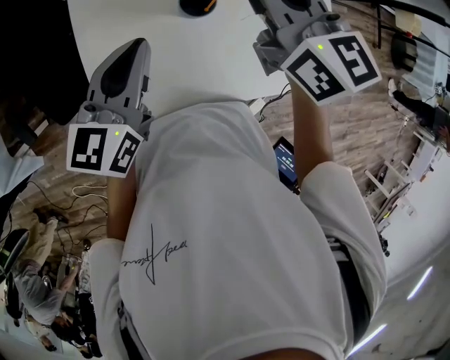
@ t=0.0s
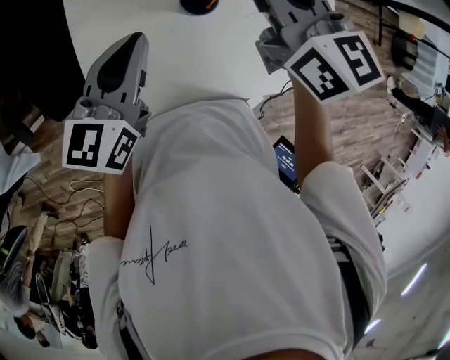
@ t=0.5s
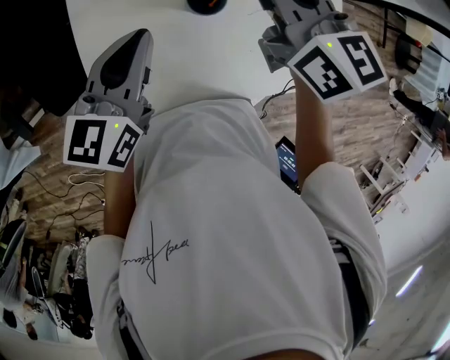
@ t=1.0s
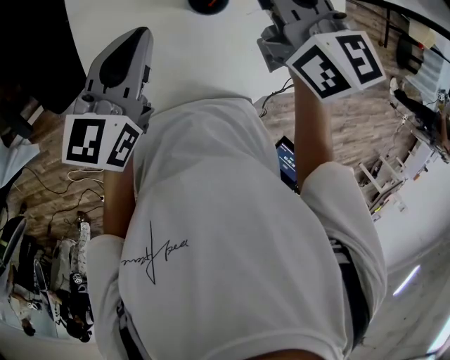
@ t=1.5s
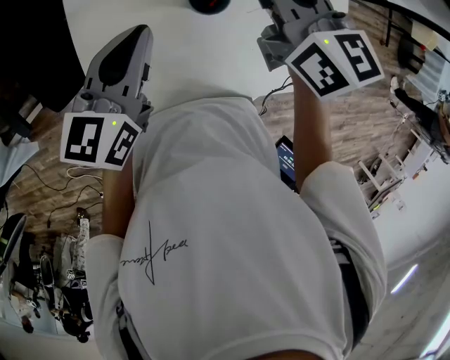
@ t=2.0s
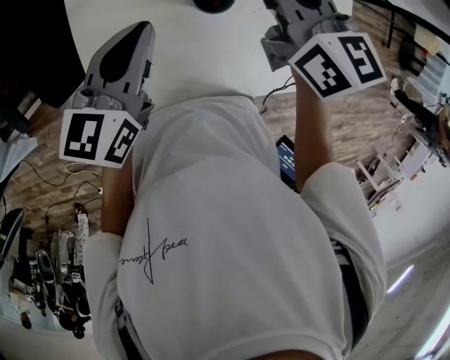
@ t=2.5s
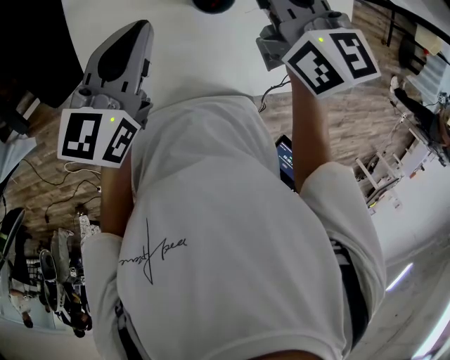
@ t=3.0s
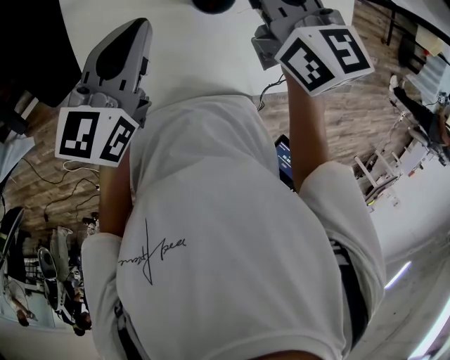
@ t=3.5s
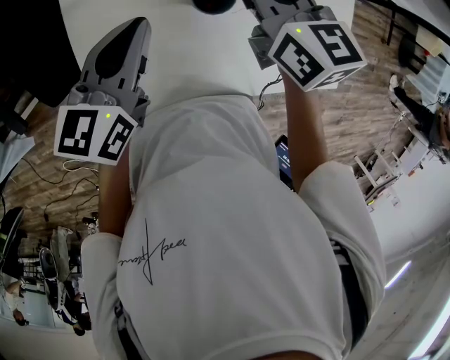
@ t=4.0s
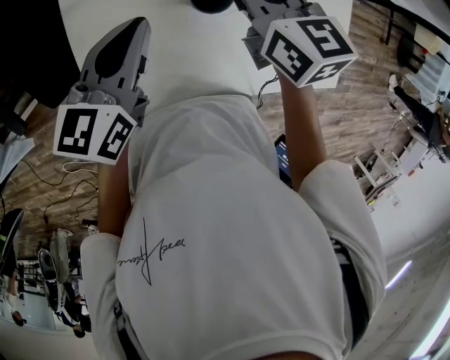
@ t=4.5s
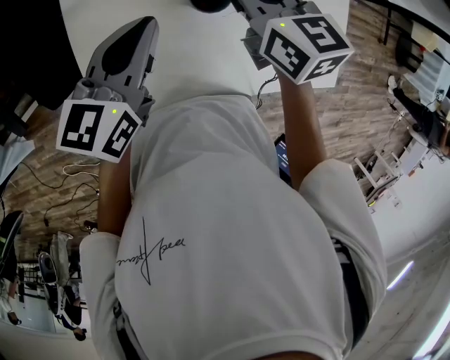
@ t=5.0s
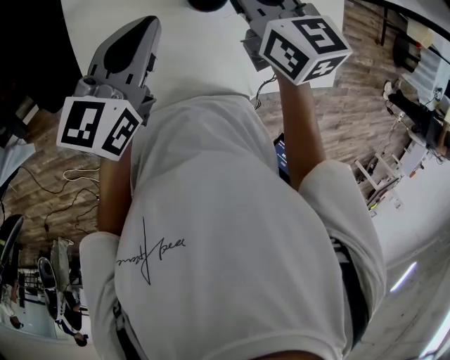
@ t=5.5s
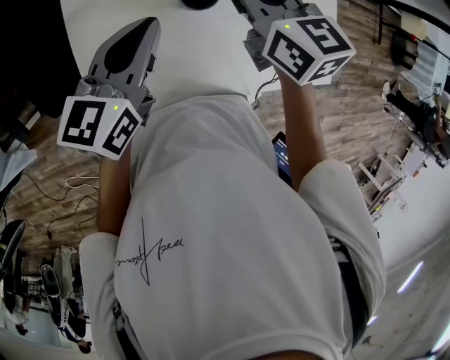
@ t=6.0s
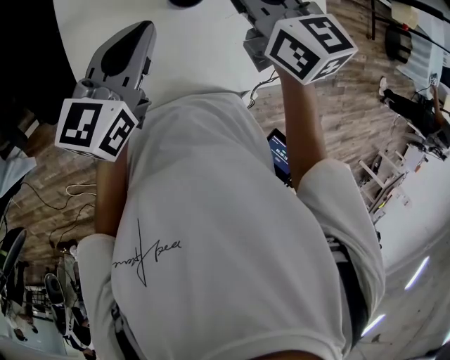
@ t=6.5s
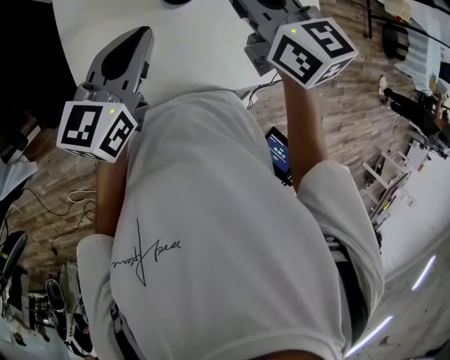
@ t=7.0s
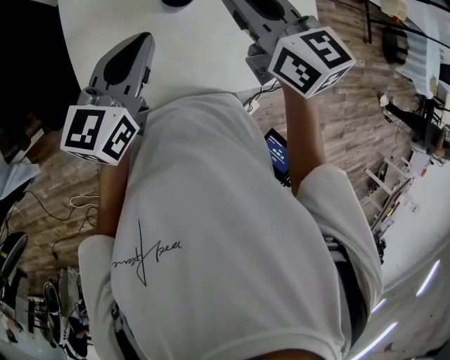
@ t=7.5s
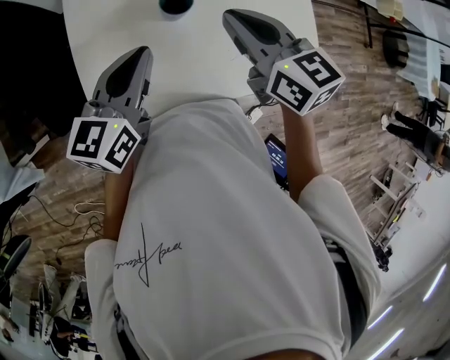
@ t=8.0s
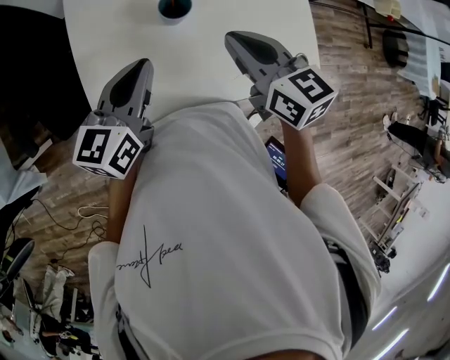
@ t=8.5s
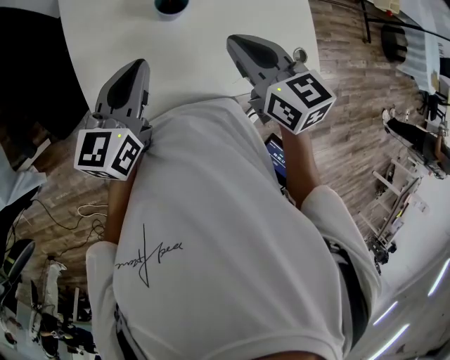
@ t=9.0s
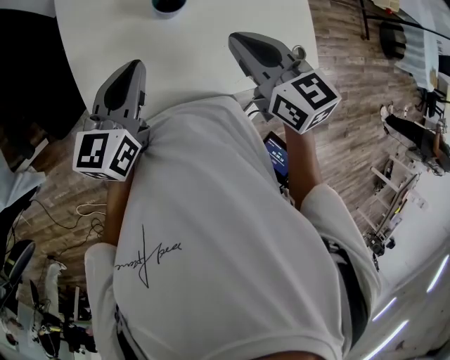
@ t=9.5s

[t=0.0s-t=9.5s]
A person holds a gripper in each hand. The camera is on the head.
t=0.0s to t=2.0s: The right gripper heads downward, covering approximately 5 cm.
t=2.0s to t=4.0s: The right gripper moves downward, some 5 cm.
t=4.0s to t=5.5s: The grippers stay close to where they were, moving slightly.
t=5.5s to t=7.5s: The left gripper changes place by roughly 5 cm. The right gripper goes about 10 cm upward and backward.
t=7.5s to t=9.5s: The right gripper is displaced backward by about 10 cm.

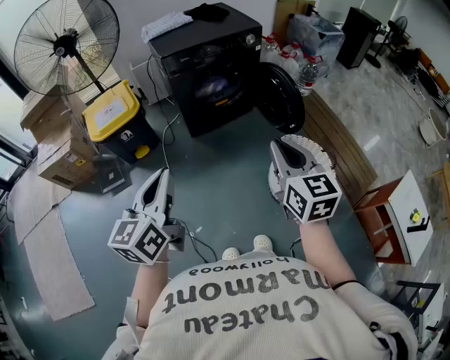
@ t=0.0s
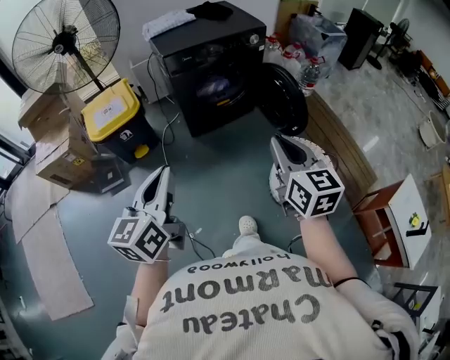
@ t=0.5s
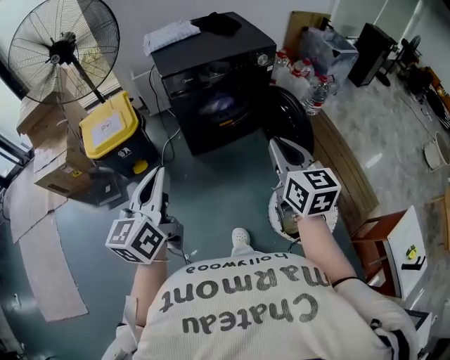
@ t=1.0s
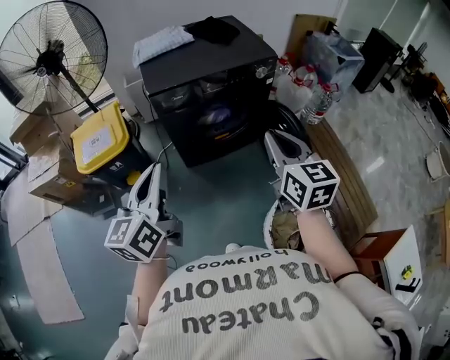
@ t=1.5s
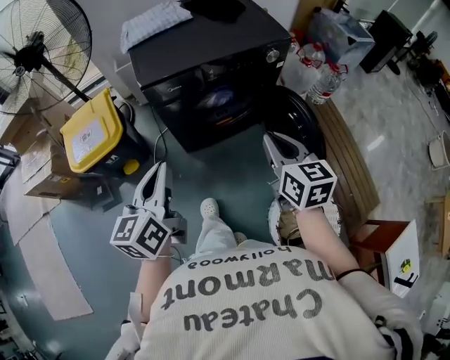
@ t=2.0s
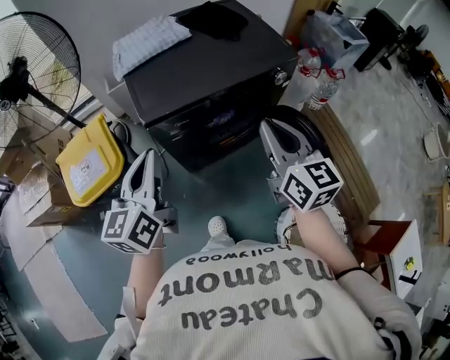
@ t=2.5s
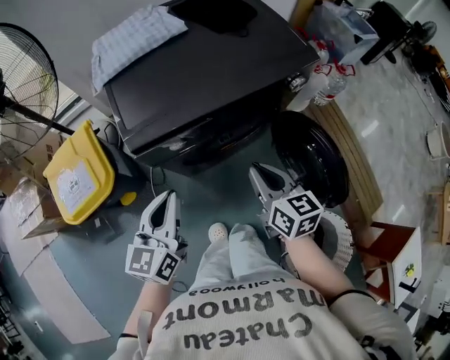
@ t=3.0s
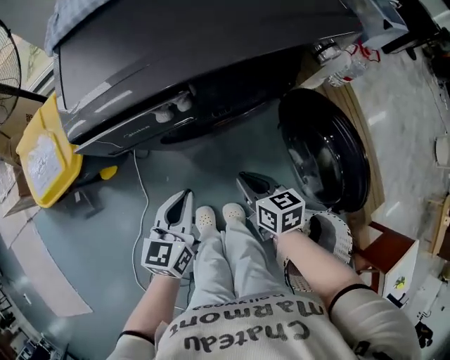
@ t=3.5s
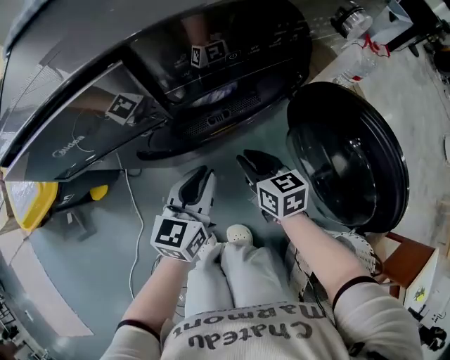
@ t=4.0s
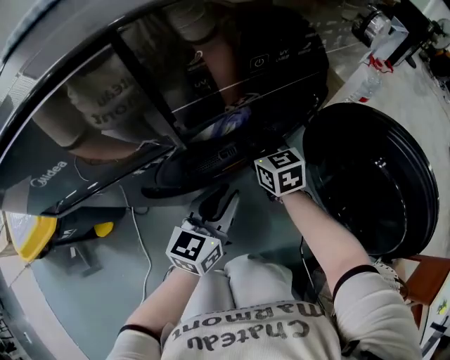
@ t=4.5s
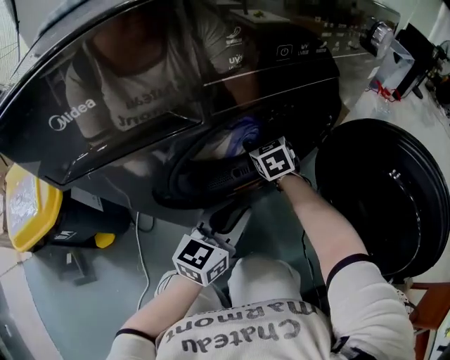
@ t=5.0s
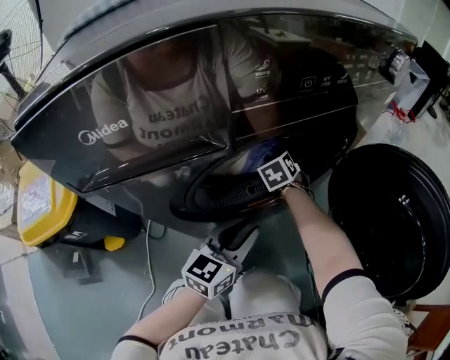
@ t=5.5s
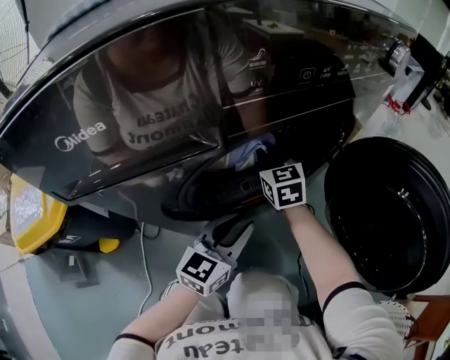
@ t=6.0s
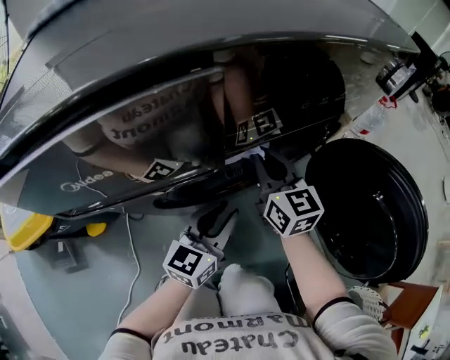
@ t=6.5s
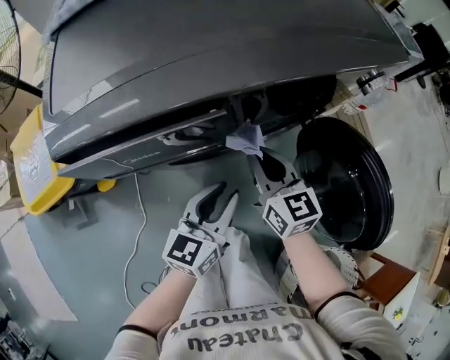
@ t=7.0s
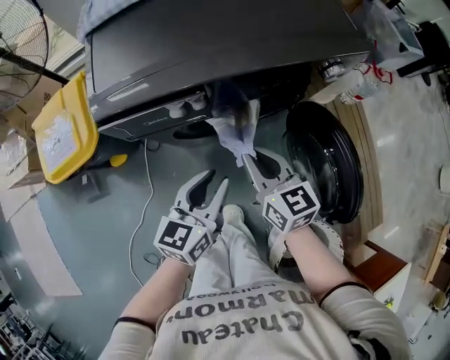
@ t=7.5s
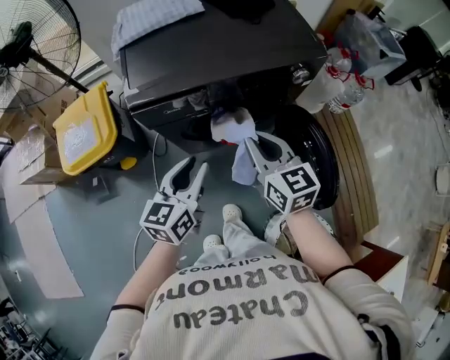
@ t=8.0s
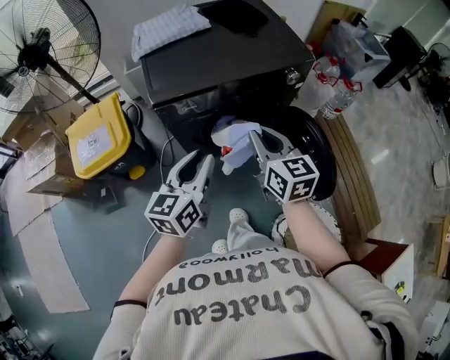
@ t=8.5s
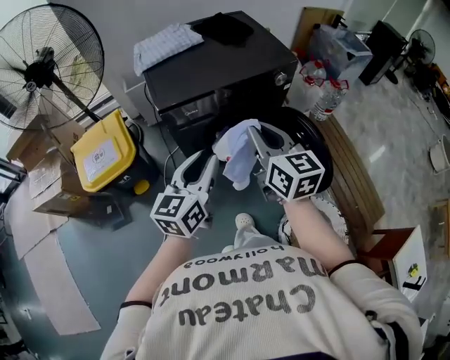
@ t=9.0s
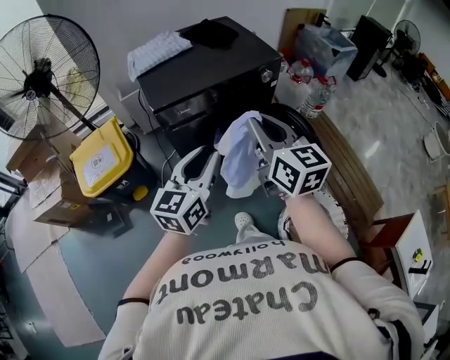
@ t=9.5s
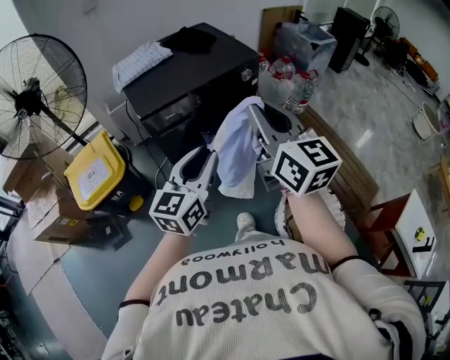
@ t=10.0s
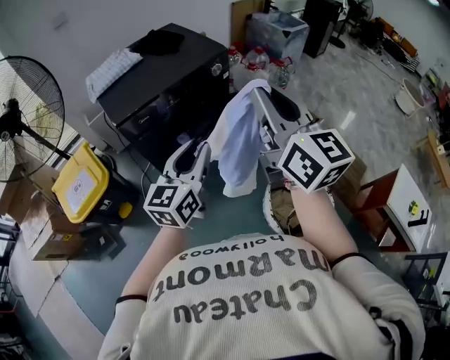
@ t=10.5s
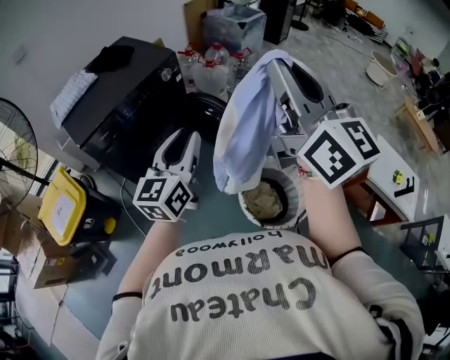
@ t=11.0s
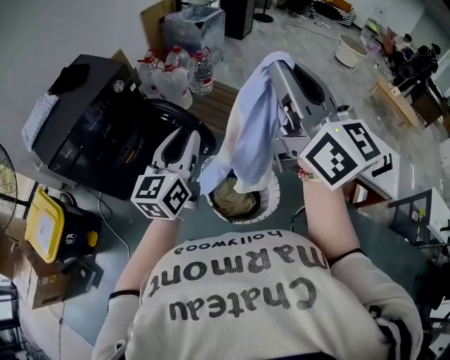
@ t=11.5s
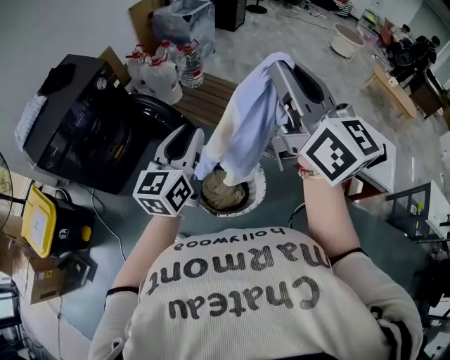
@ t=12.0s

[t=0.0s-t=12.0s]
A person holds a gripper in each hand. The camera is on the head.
t=0.0s to t=2.0s: Both grippers travel together forward, approximately 40 cm.
t=2.0s to t=4.0s: The two grippers go approximately 50 cm downward and forward. The left gripper swivels some 20 degrees.
t=4.0s to t=6.0s: The right gripper shifts about 20 cm forward, changes its angle by some 30 degrees, and opens, then closes once more. Meanwhile the left gripper heads downward, covering some 10 cm.
t=6.0s to t=8.0s: The left gripper is displaced upward by some 35 cm, and changes its angle by about 30 degrees. Meanwhile the right gripper shifts approximately 50 cm upward and backward, and turns by roughly 20 degrees.
t=8.0s to t=10.0s: The right gripper moves upward and backward, some 35 cm, and turns by roughly 30 degrees. The left gripper heads backward and upward, covering about 25 cm, and changes its angle by approximately 30 degrees.
t=10.0s to t=12.0s: The pair of grippers is taken to the right, roughly 50 cm. The right gripper turns by approximately 30 degrees; the left gripper changes its angle by approximately 20 degrees.

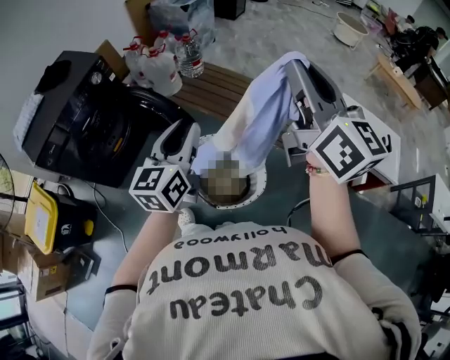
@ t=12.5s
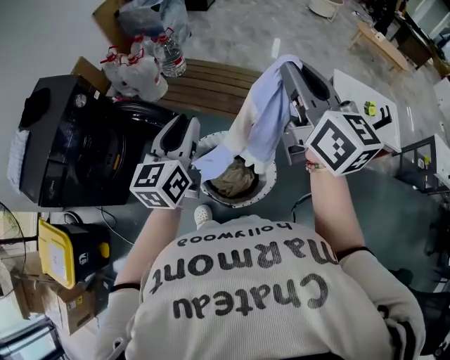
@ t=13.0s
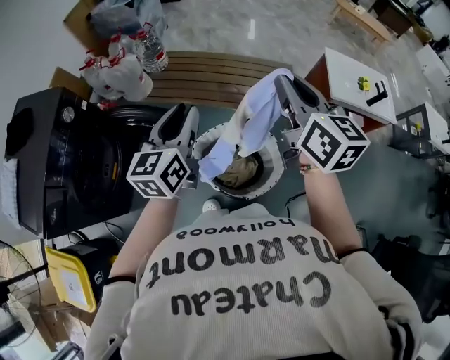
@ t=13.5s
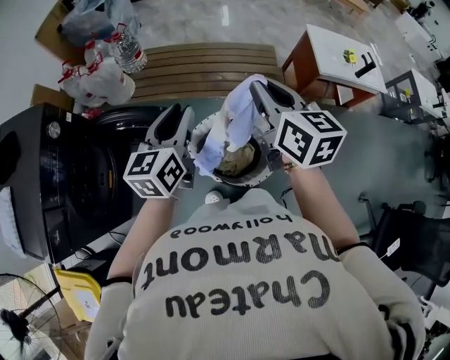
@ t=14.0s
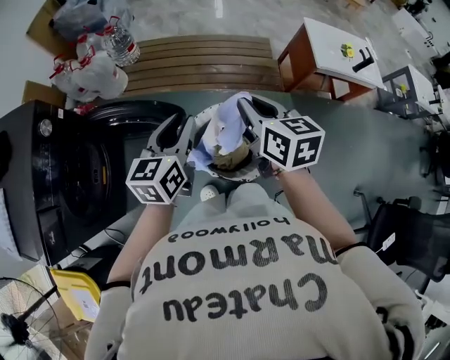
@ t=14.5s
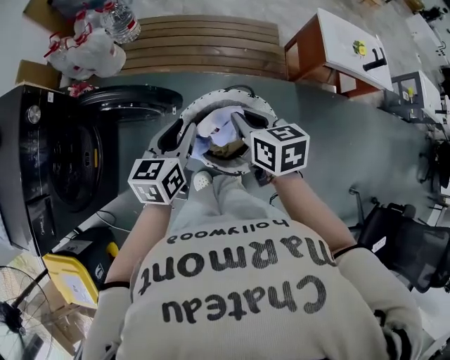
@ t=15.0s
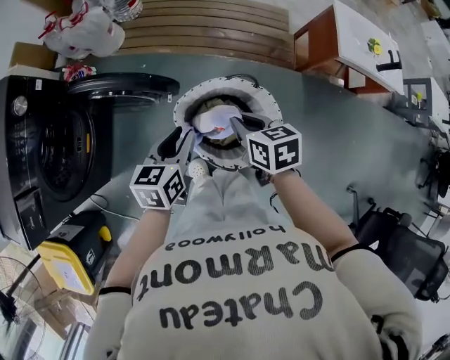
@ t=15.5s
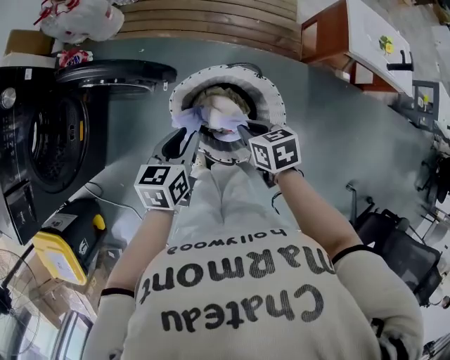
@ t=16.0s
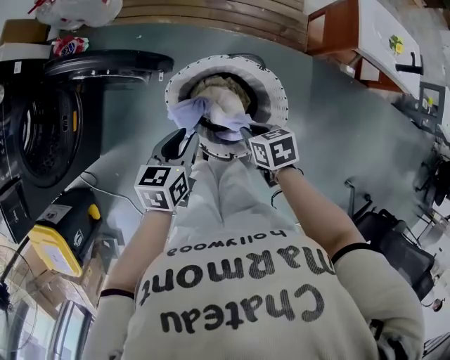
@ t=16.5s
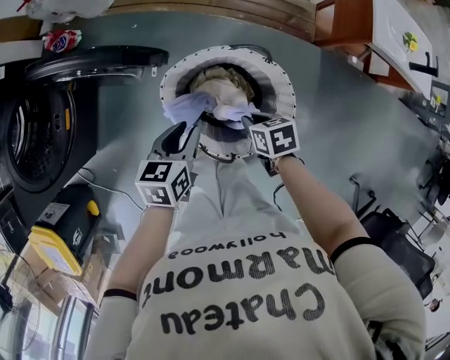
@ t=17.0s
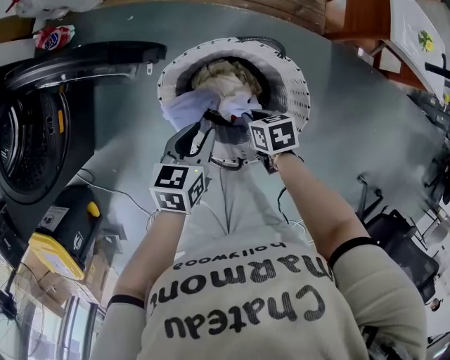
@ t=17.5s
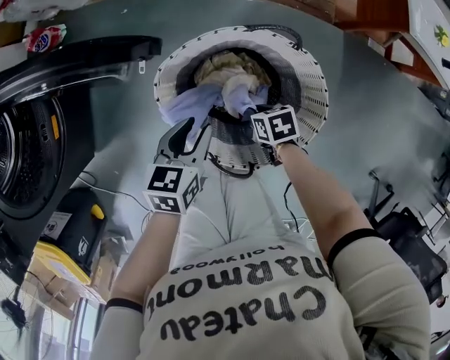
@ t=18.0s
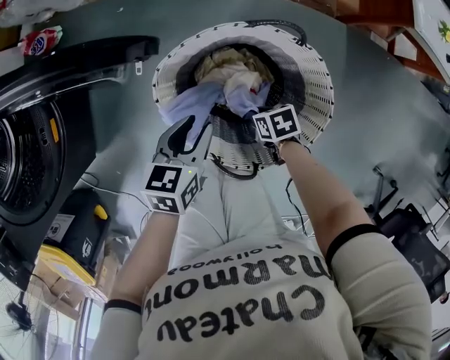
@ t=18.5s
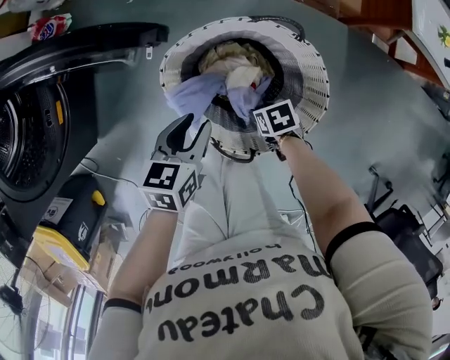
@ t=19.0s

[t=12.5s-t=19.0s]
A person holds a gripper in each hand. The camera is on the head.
t=12.5s to t=14.5s: The right gripper is displaced downward and to the left by about 30 cm, and points its fingers some 40 degrees further downward, while the left gripper travels downward, forward and to the left by about 15 cm, and rotates approximately 30 degrees.
t=14.5s to t=17.0s: Both grippers move downward, roughly 35 cm. The right gripper tips its fingers downward by some 40 degrees. The left gripper rotates approximately 30 degrees.
t=17.0s to t=19.0s: The left gripper travels downward by roughly 10 cm; the right gripper shifts approximately 15 cm downward, and opens its fingers.
